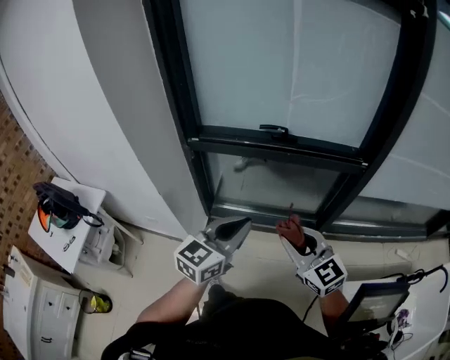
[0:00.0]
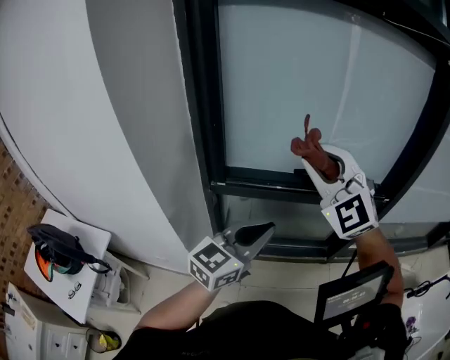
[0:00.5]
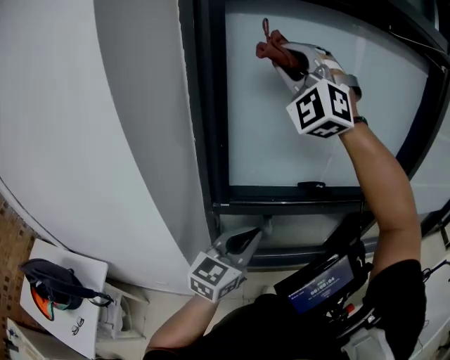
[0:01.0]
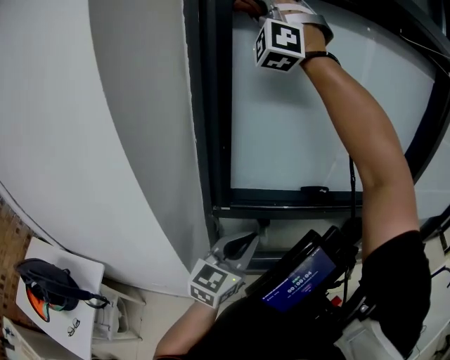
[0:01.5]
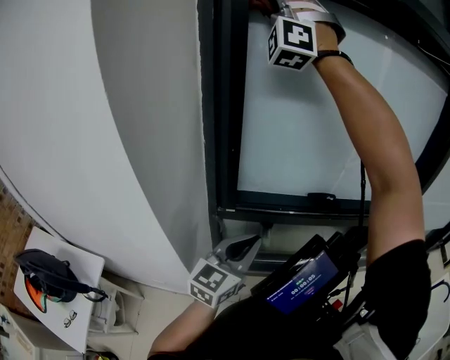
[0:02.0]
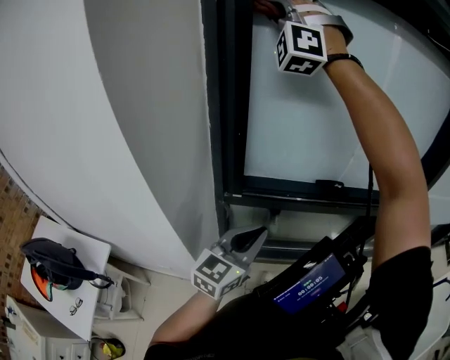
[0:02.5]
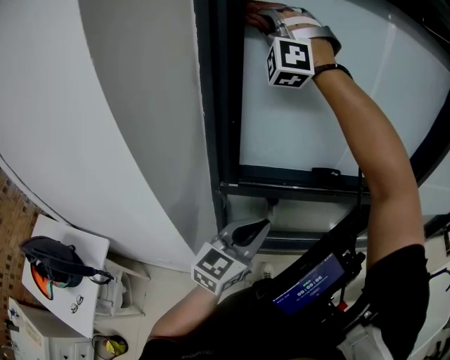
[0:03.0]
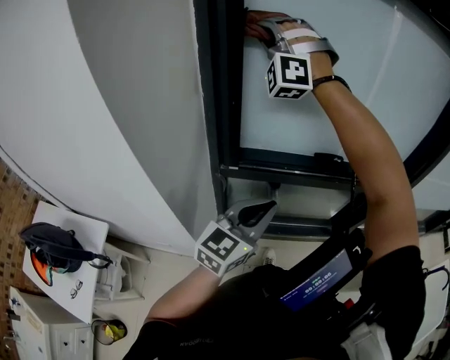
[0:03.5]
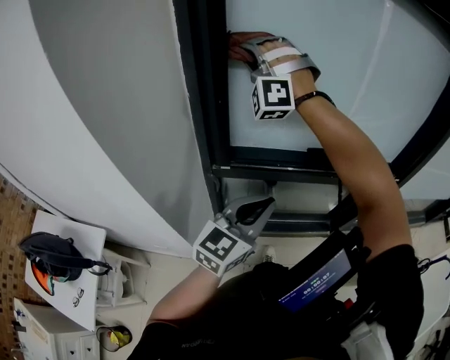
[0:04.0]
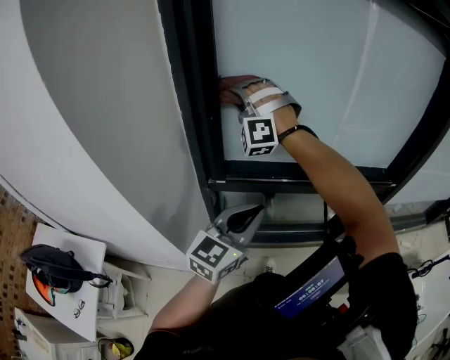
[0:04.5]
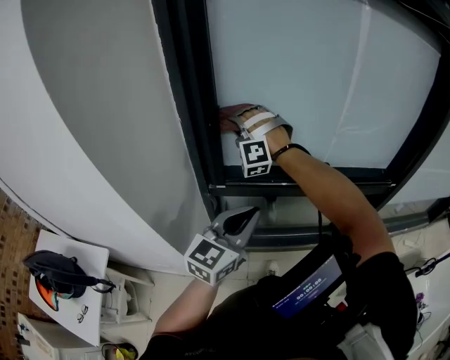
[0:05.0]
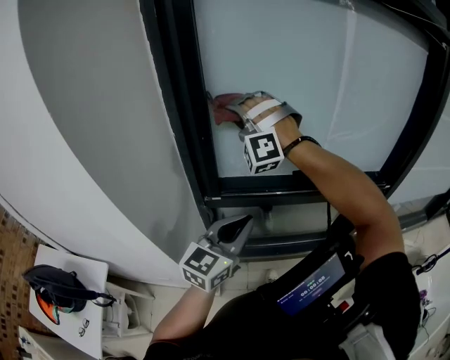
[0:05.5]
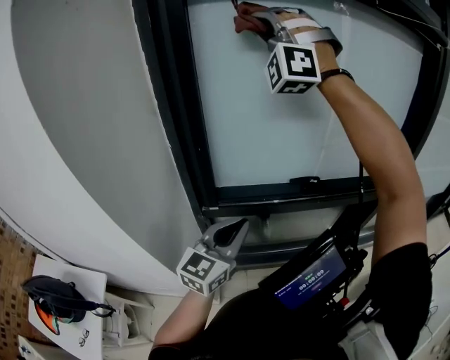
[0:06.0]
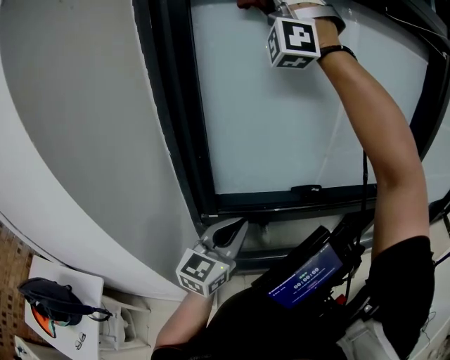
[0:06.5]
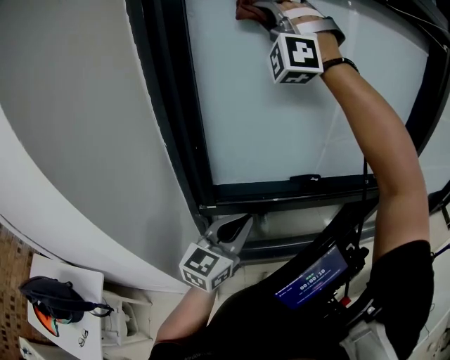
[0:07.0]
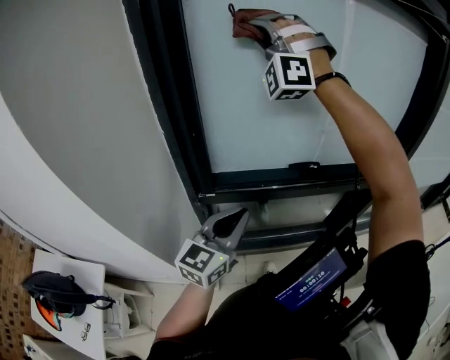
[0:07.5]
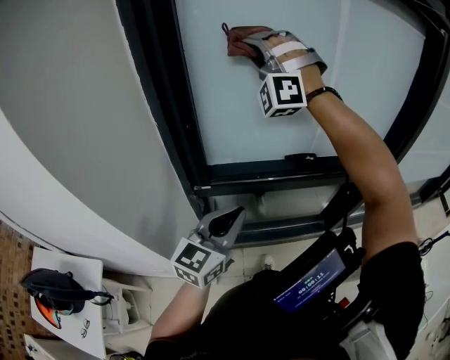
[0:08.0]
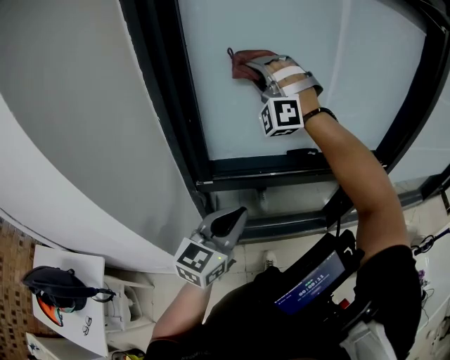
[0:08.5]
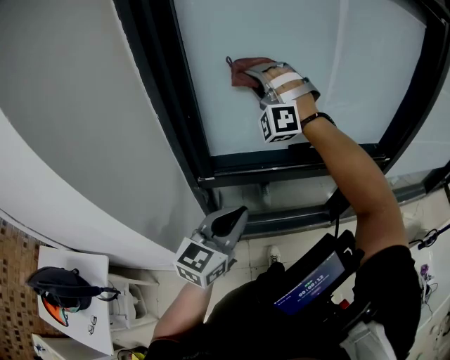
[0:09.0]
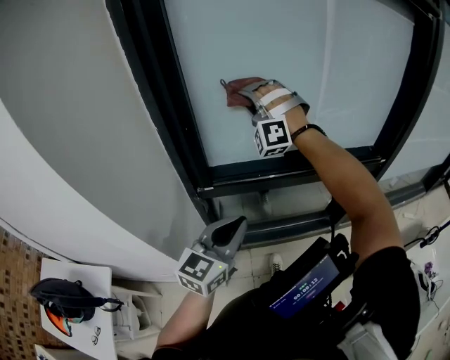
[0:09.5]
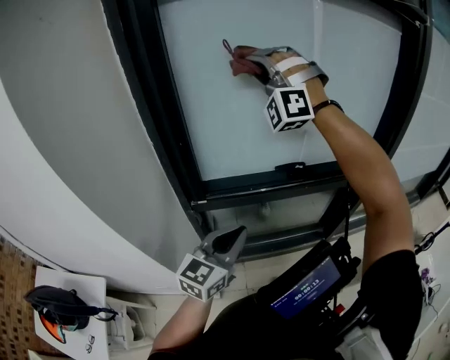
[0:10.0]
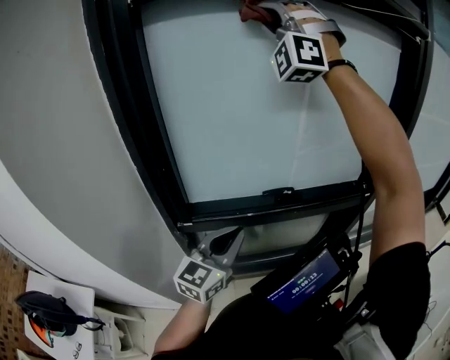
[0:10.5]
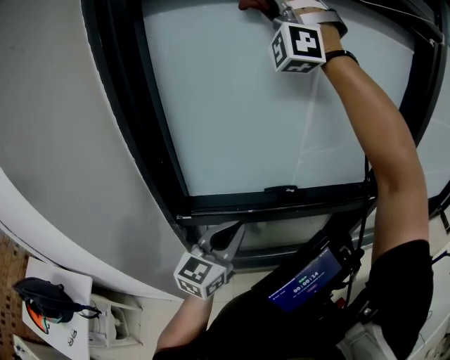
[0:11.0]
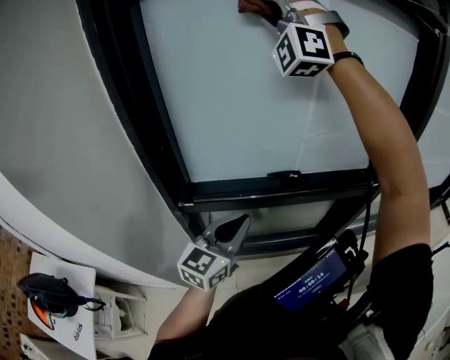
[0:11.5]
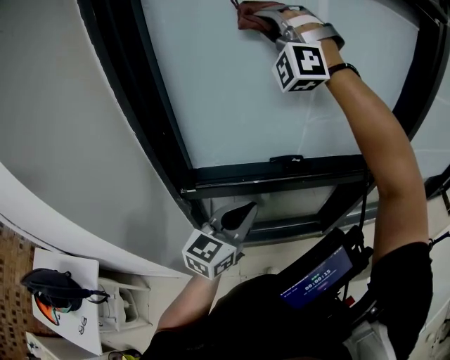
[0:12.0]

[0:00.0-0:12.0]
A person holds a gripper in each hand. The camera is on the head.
0:00.0 to 0:02.0: The left gripper moves some 30 cm.
0:10.0 to 0:12.0: The left gripper moves about 10 cm.

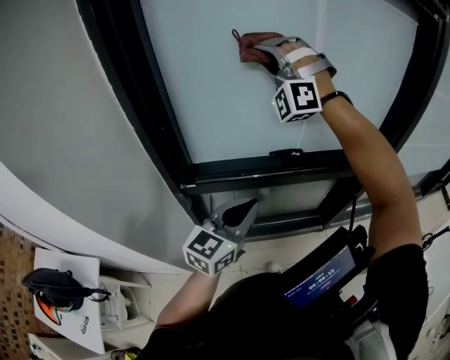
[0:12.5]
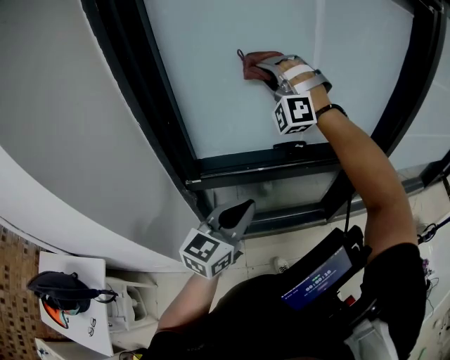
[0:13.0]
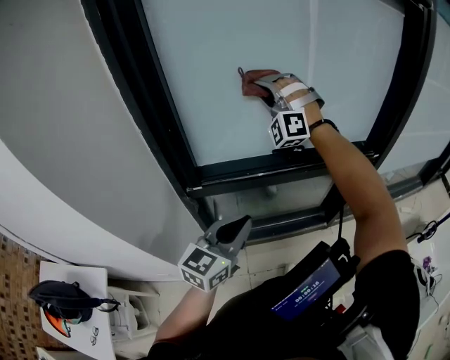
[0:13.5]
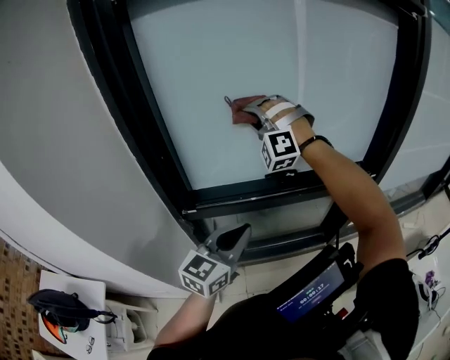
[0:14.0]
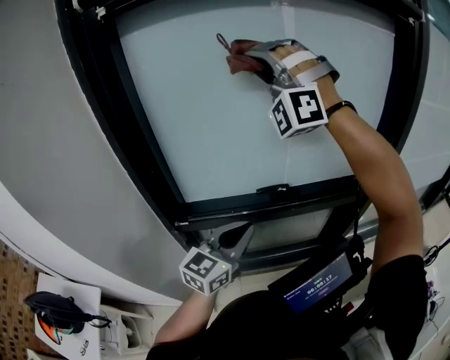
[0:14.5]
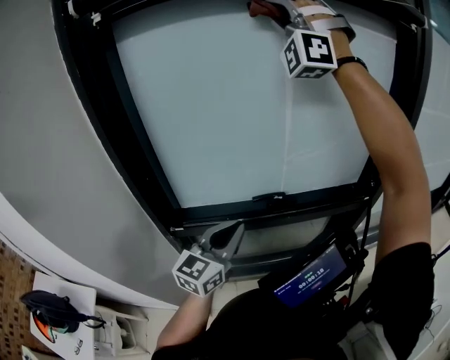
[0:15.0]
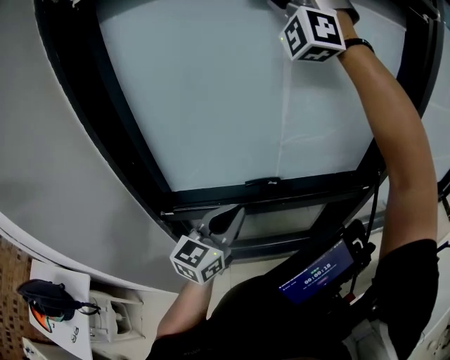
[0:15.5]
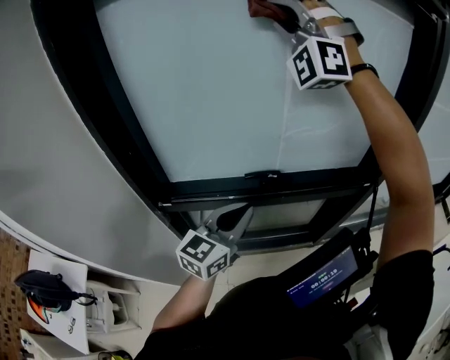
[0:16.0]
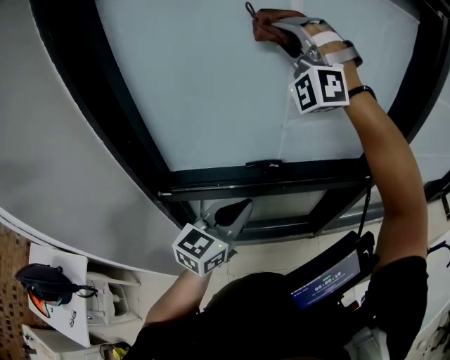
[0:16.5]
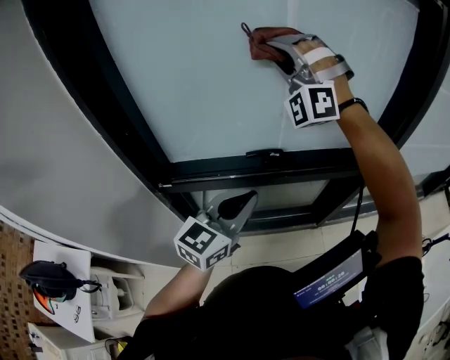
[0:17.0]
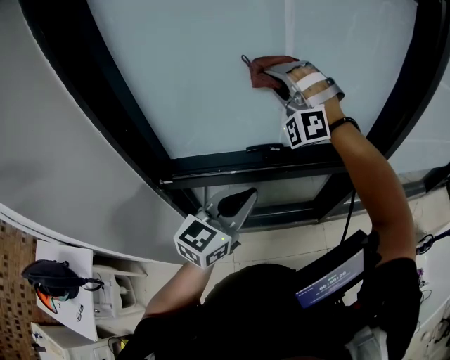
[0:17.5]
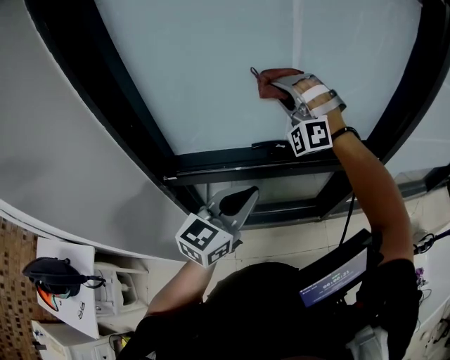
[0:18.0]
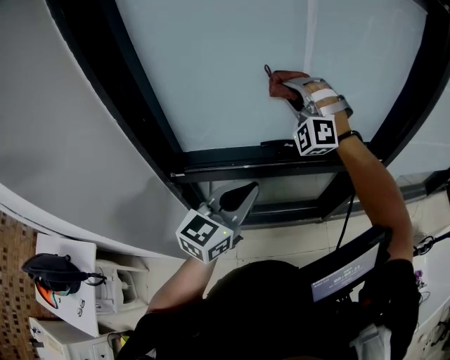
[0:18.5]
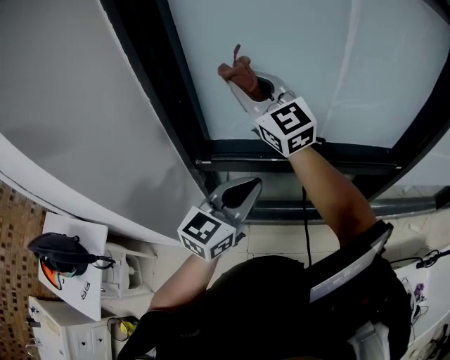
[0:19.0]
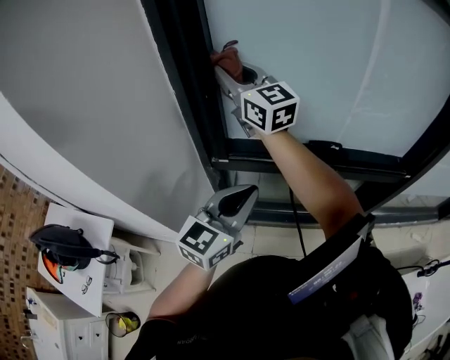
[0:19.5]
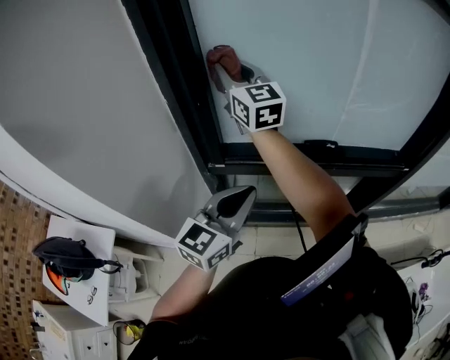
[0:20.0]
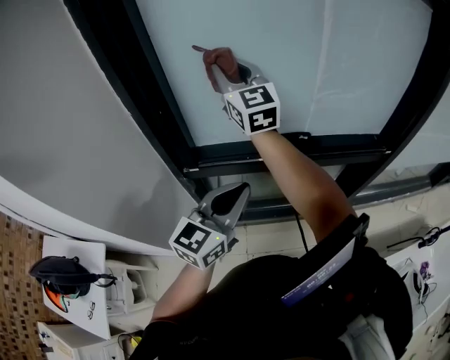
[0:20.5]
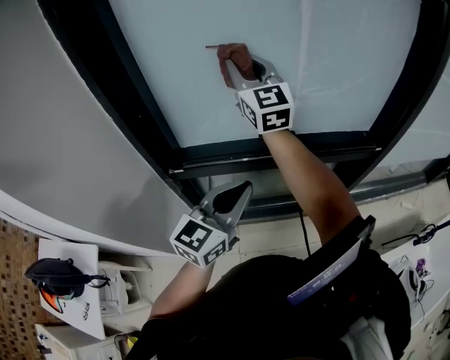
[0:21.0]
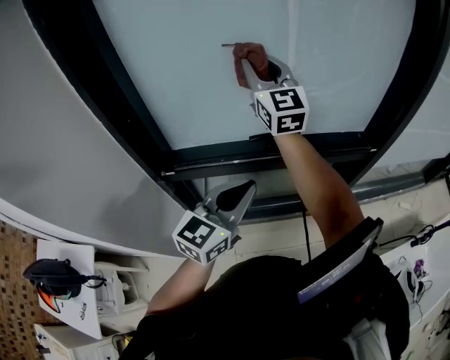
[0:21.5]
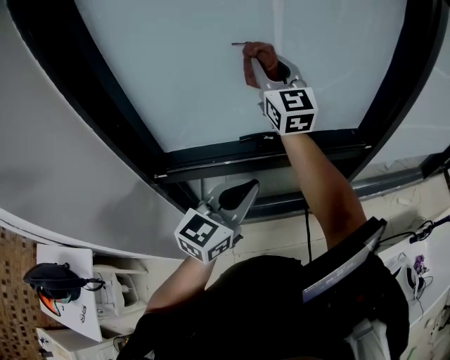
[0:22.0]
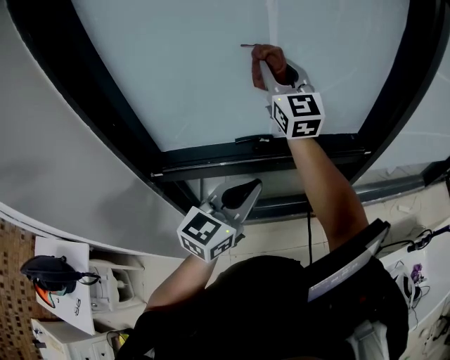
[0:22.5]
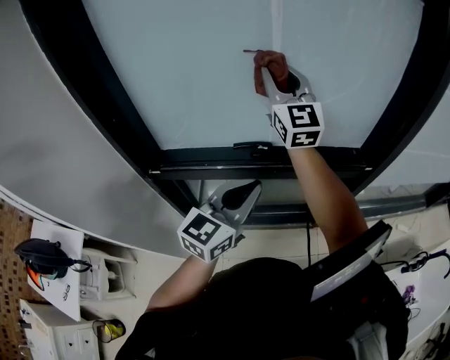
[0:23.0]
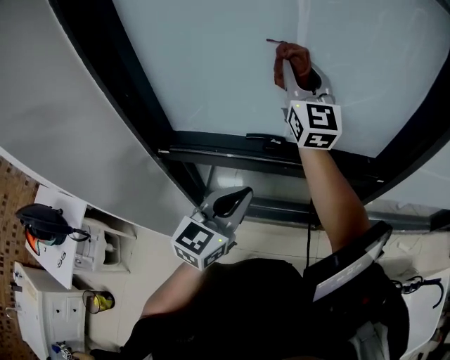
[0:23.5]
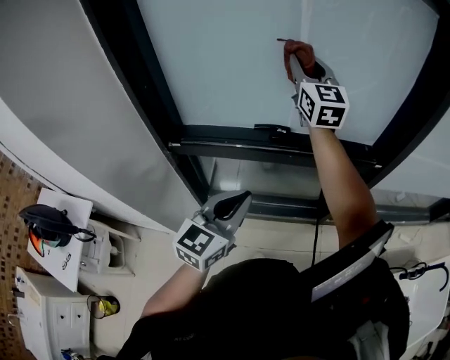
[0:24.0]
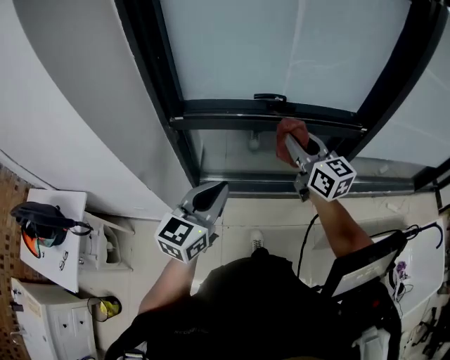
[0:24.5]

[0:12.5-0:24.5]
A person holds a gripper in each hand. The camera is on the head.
0:12.5 to 0:14.5: The left gripper ends up some 5 cm from where it was.
0:20.5 to 0:22.5: The left gripper moves approximately 15 cm.
0:22.5 to 0:24.5: The left gripper shifts by some 25 cm.

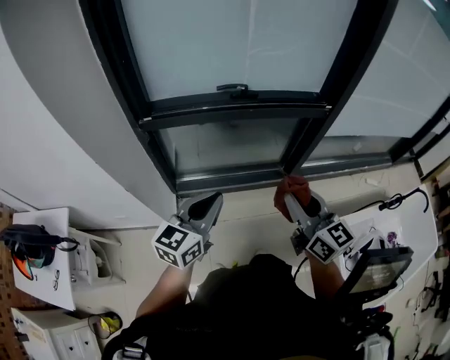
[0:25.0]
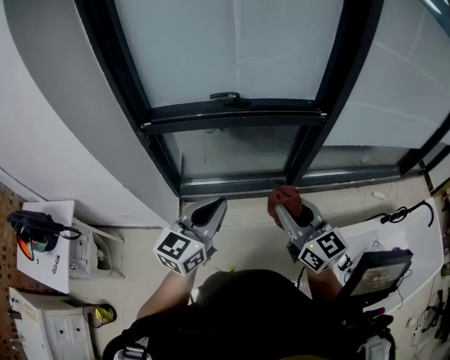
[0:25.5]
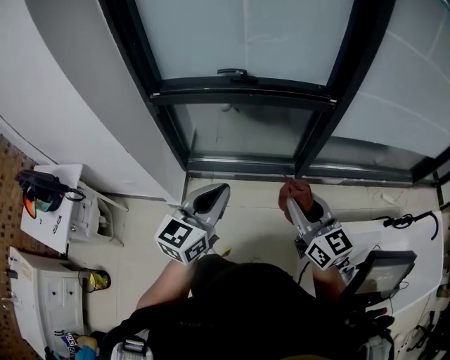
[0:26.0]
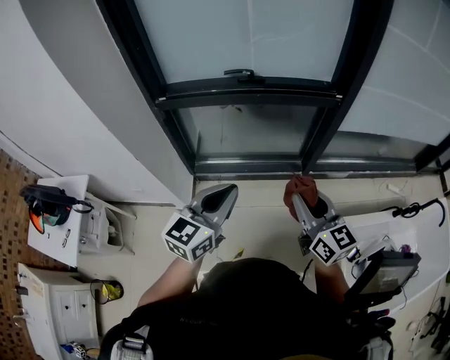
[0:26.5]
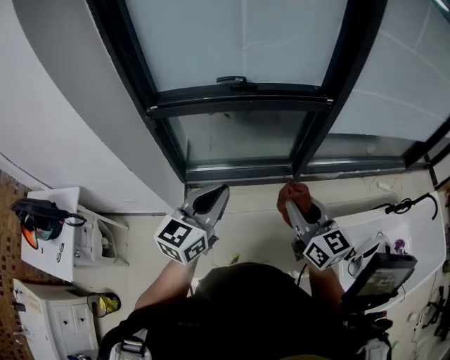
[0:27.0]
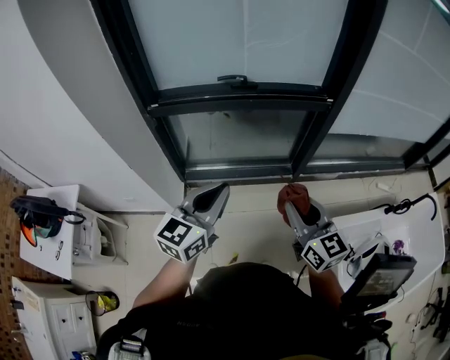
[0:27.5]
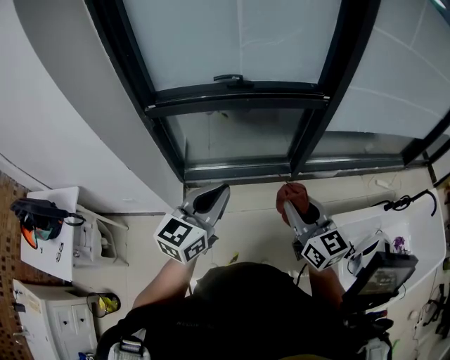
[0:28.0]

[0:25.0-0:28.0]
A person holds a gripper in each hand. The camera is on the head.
0:25.0 to 0:26.5: The left gripper ends up roughly 15 cm from where it was.

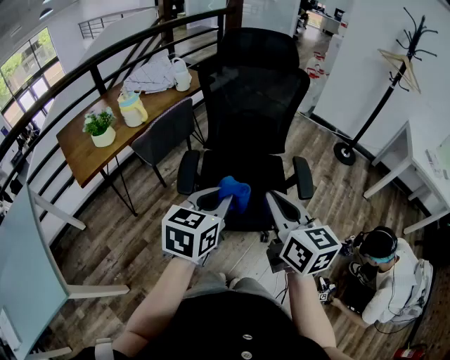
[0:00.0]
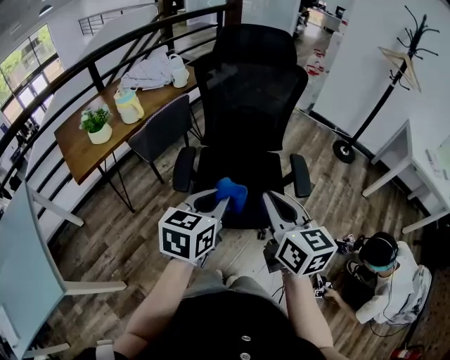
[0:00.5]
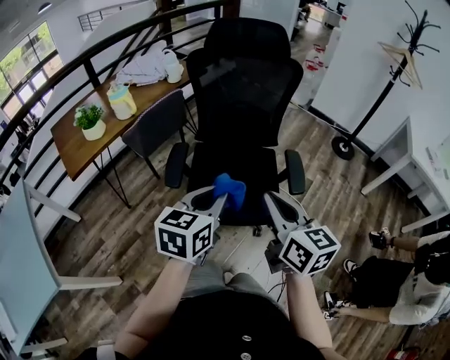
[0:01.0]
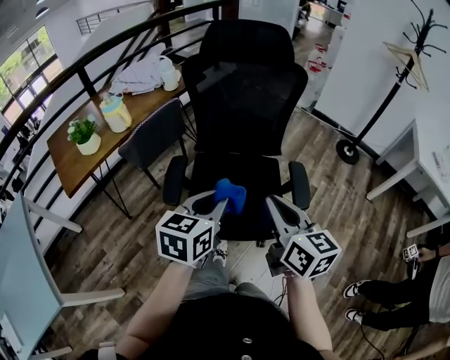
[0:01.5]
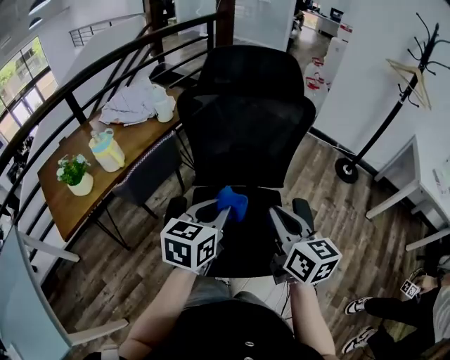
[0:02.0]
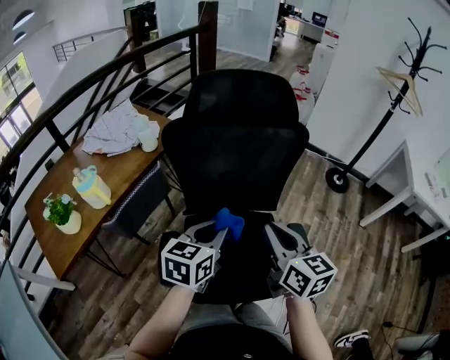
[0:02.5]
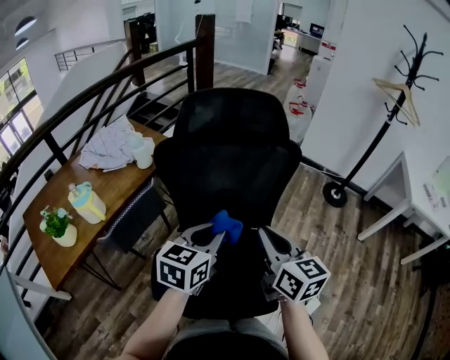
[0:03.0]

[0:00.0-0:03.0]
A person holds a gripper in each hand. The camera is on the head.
0:00.0 to 0:01.5: The left gripper is displaced forward by roughly 5 cm. Meanwhile the right gripper travels forward and to the right by about 10 cm.
0:01.5 to 0:03.0: The grippers both shift forward by about 25 cm.
